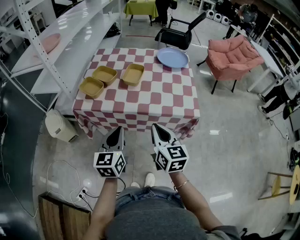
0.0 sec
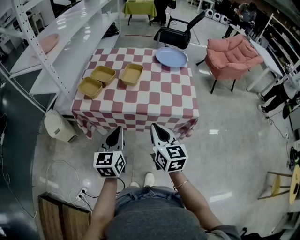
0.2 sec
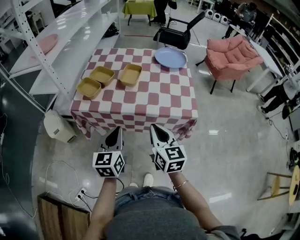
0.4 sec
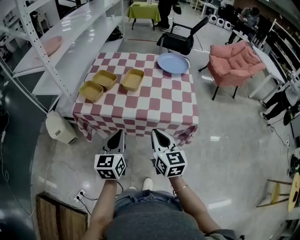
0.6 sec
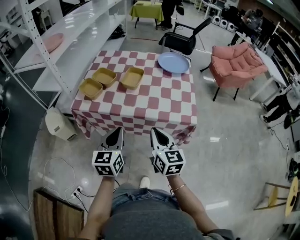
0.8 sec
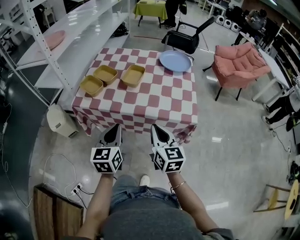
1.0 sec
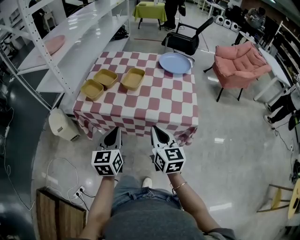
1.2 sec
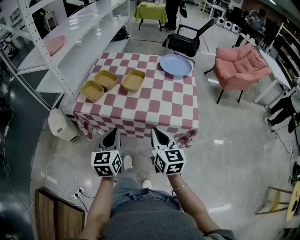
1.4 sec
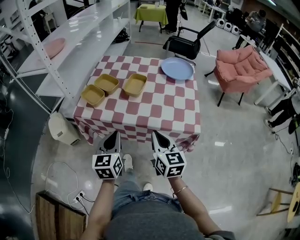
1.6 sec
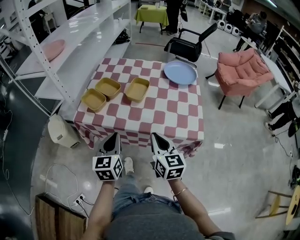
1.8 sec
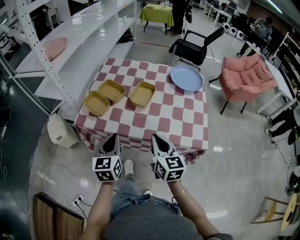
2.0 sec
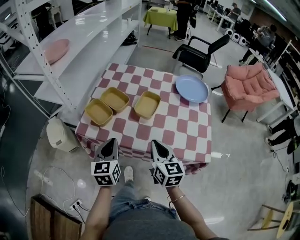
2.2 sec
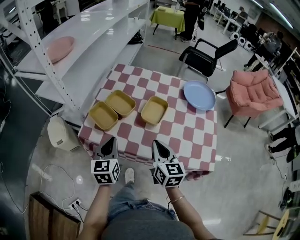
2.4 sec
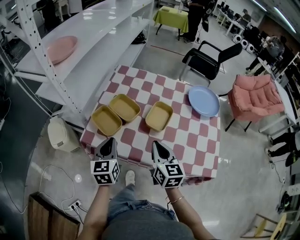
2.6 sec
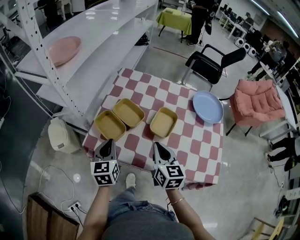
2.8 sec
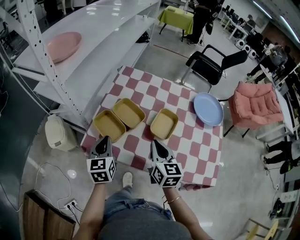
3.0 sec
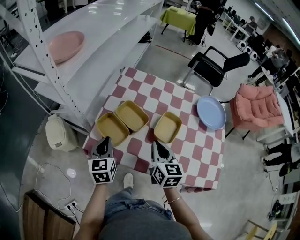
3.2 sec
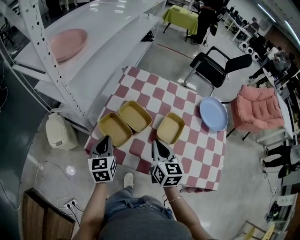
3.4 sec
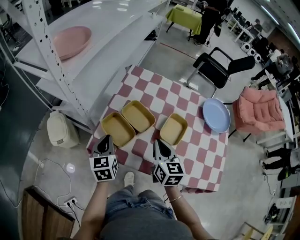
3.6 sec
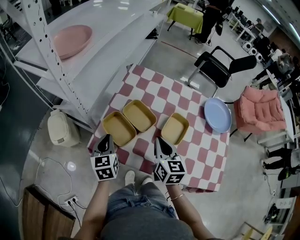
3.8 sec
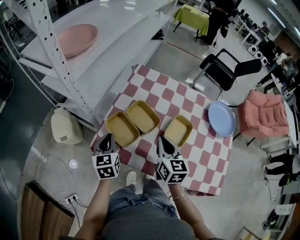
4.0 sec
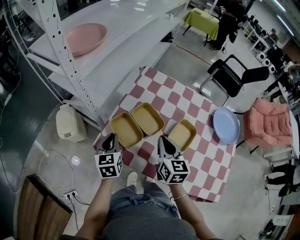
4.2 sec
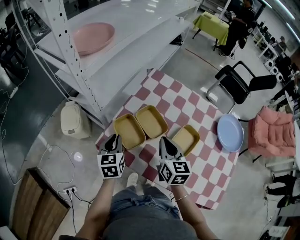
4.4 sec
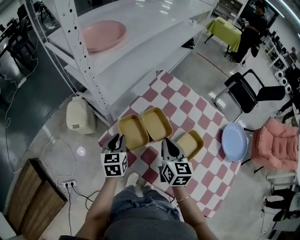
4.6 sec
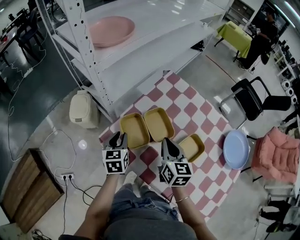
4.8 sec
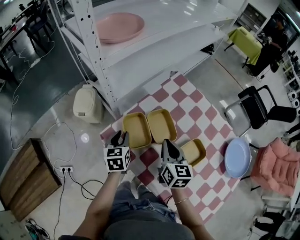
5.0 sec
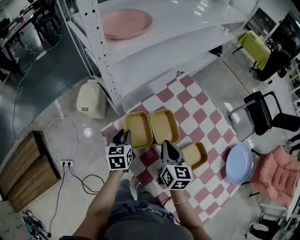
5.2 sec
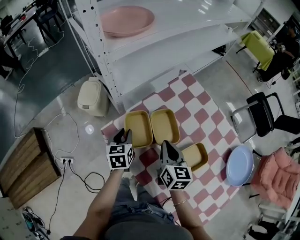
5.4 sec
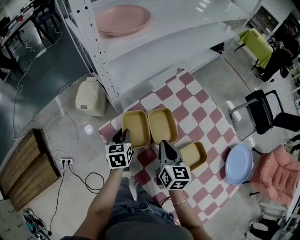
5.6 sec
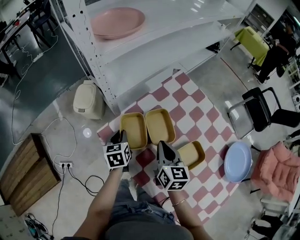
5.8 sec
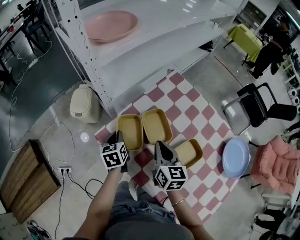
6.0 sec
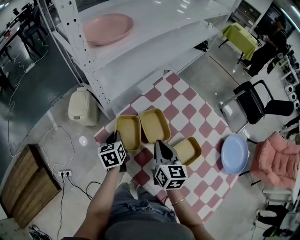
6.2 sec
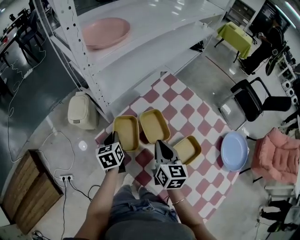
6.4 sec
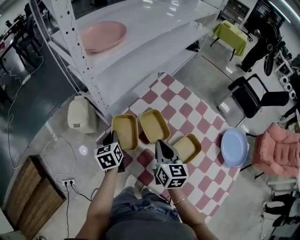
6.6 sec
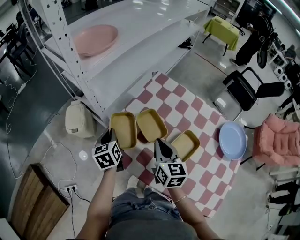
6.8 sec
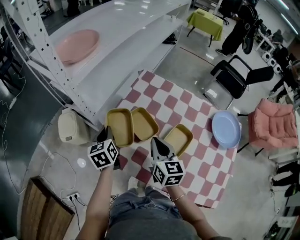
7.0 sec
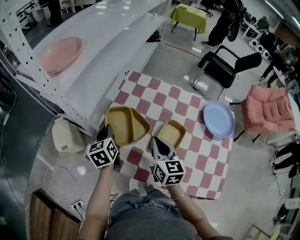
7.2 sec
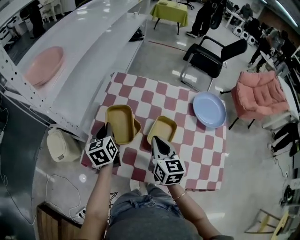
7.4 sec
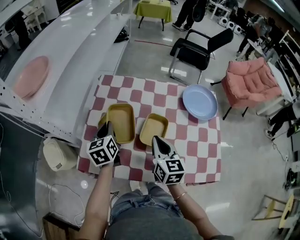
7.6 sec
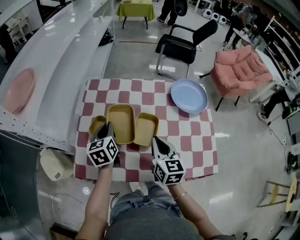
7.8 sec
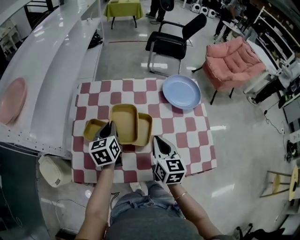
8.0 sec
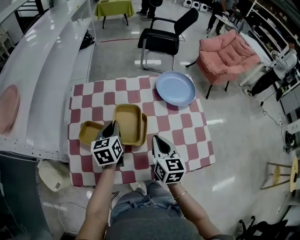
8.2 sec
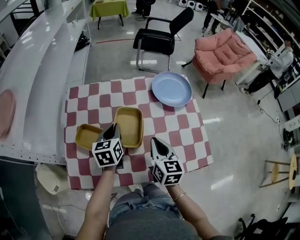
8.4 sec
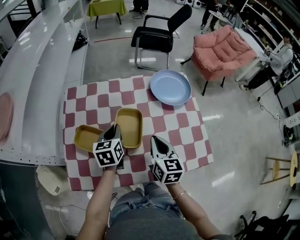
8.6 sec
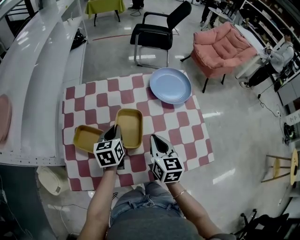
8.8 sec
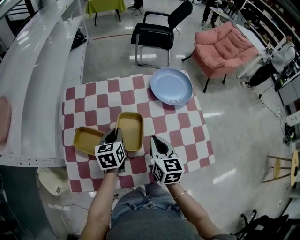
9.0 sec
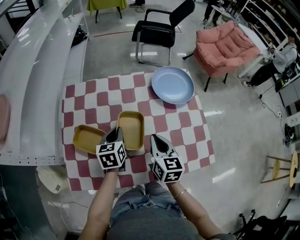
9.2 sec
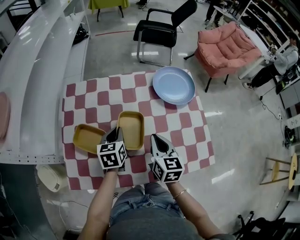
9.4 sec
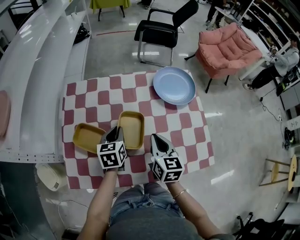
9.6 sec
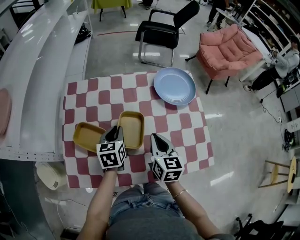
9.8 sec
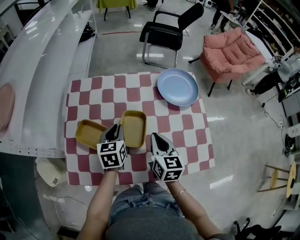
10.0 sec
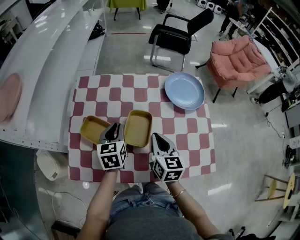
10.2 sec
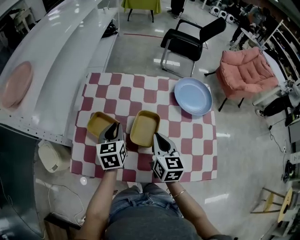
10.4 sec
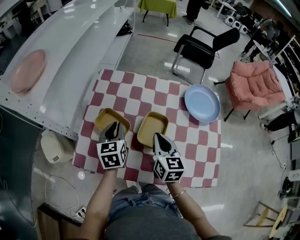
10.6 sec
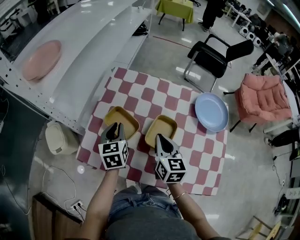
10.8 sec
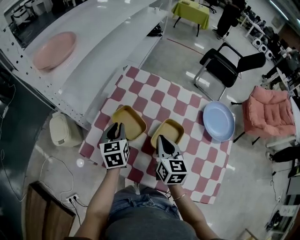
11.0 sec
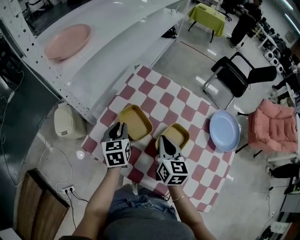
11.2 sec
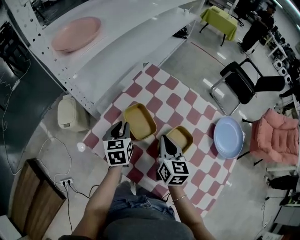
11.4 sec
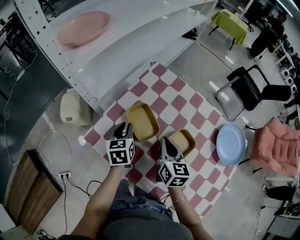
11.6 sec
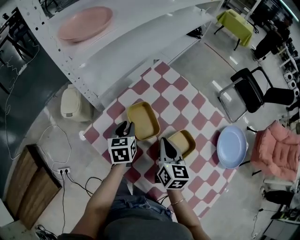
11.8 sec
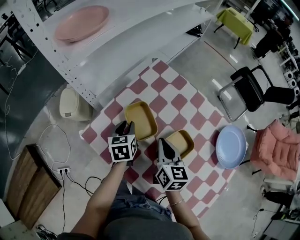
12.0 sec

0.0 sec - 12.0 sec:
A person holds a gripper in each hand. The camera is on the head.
0.0 sec - 1.6 sec: The right gripper changes place by approximately 5 cm.
1.6 sec - 3.0 sec: The grippers both shift forward and to the left by some 30 cm.
3.0 sec - 4.4 sec: The right gripper heads forward, covering approximately 10 cm. Meanwhile the left gripper moves approximately 5 cm.
4.4 sec - 6.0 sec: The left gripper moves downward, about 5 cm, and changes its angle by approximately 30 degrees.
6.0 sec - 7.6 sec: The right gripper ends up roughly 15 cm from where it was, and turns by approximately 40 degrees. Meanwhile the left gripper shifts by about 20 cm, and rotates approximately 40 degrees.
7.6 sec - 9.0 sec: The left gripper goes about 15 cm to the right, and changes its angle by some 30 degrees; the right gripper goes approximately 10 cm to the right.
9.0 sec - 10.4 sec: The left gripper is displaced to the left by some 5 cm, while the right gripper moves roughly 5 cm.
10.4 sec - 12.0 sec: The right gripper moves about 15 cm, and turns by approximately 30 degrees; the left gripper ends up approximately 15 cm from where it was, and turns by about 40 degrees.

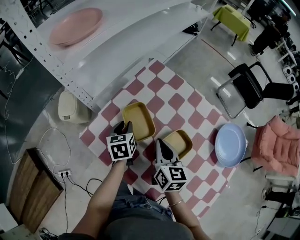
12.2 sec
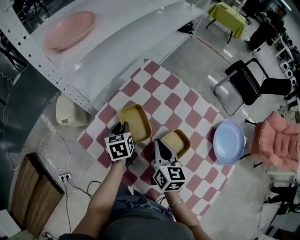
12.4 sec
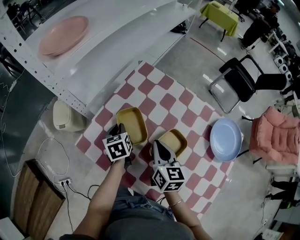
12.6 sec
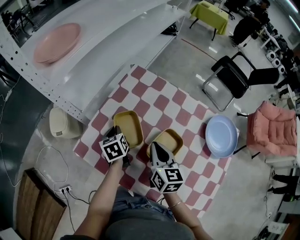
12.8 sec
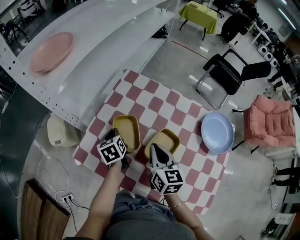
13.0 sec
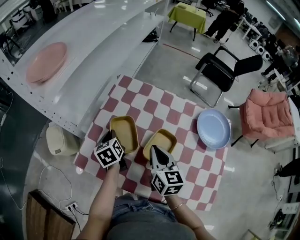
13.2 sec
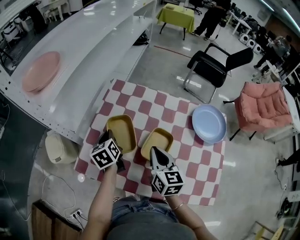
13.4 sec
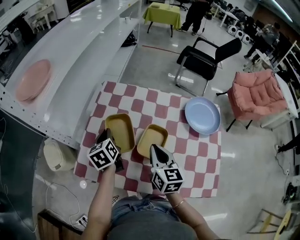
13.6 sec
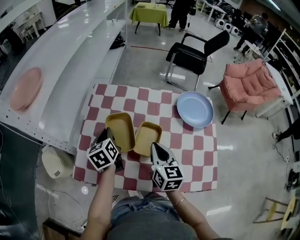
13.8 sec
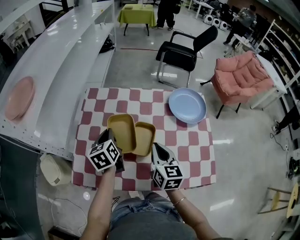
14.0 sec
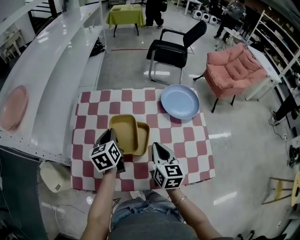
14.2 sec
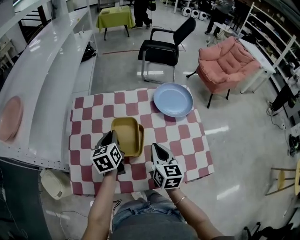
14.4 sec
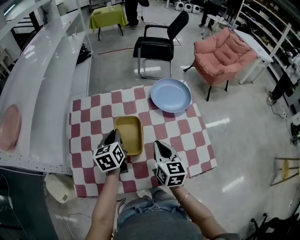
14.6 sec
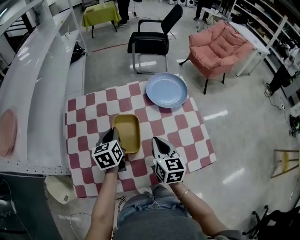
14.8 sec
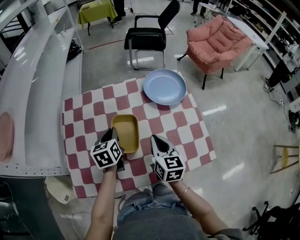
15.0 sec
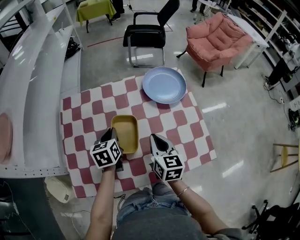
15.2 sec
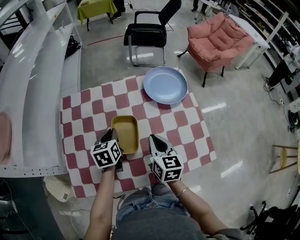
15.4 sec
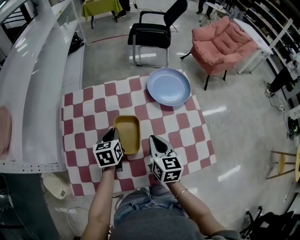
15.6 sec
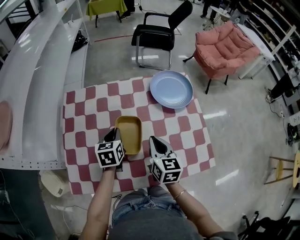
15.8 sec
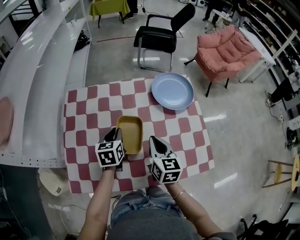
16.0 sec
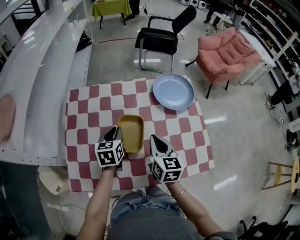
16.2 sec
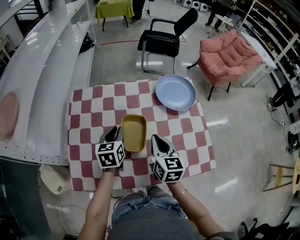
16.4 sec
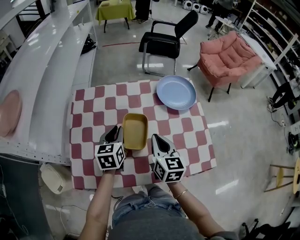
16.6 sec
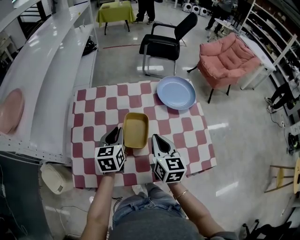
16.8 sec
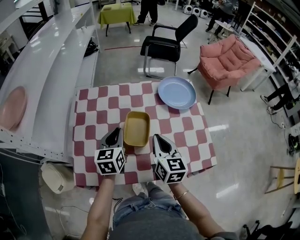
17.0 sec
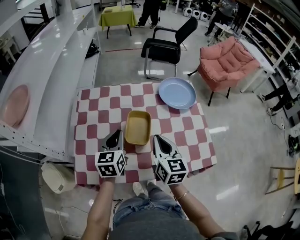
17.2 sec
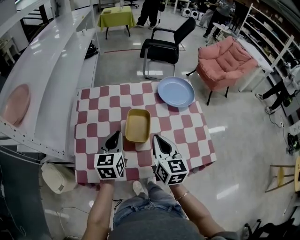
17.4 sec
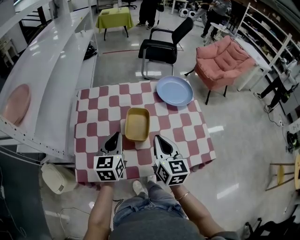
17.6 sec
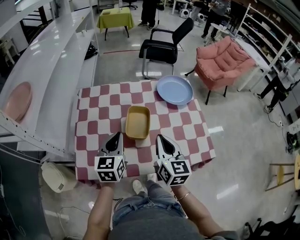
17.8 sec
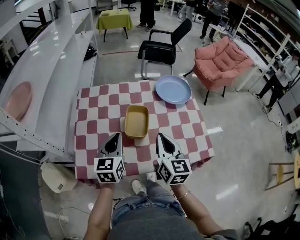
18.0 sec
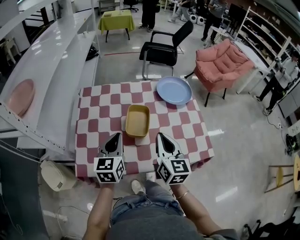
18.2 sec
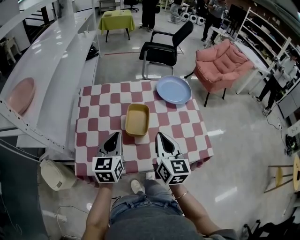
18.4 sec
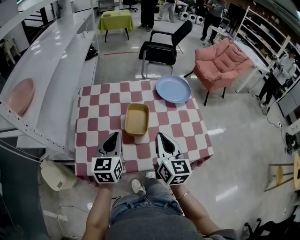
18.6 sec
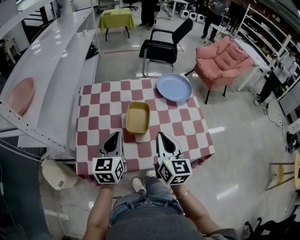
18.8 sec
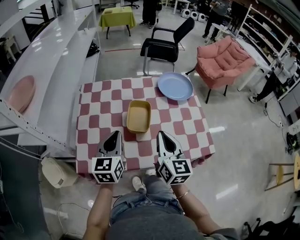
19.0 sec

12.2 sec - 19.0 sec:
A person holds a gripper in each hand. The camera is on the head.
12.2 sec - 13.6 sec: The left gripper shifts approximately 10 cm upward; the right gripper is displaced backward and to the right by some 10 cm, and swivels approximately 20 degrees.
13.6 sec - 15.0 sec: The right gripper ends up some 15 cm from where it was, and rotates approximately 20 degrees; the left gripper moves approximately 20 cm, and rotates about 40 degrees.
15.0 sec - 16.2 sec: There are only small adjustments of the grippers.
16.2 sec - 17.6 sec: Both grippers travel together backward and upward, about 10 cm.
17.6 sec - 19.0 sec: The left gripper shifts by about 5 cm.

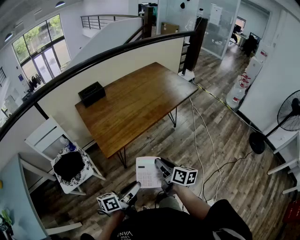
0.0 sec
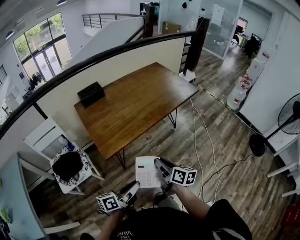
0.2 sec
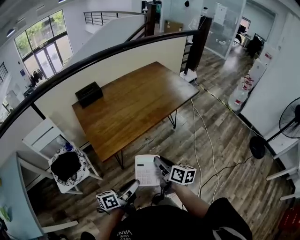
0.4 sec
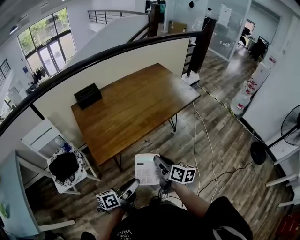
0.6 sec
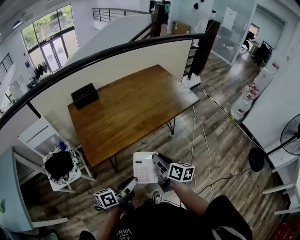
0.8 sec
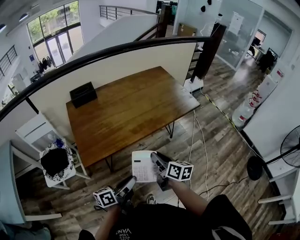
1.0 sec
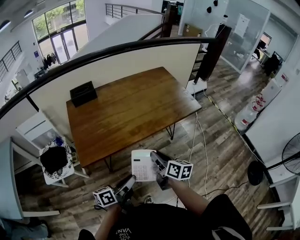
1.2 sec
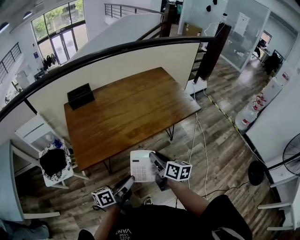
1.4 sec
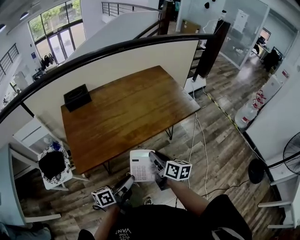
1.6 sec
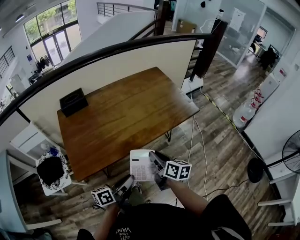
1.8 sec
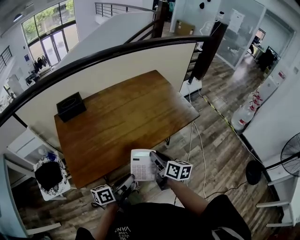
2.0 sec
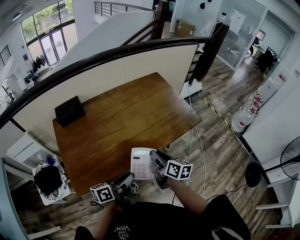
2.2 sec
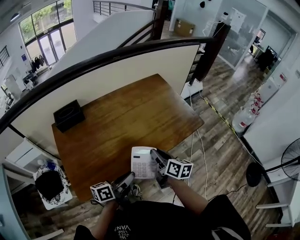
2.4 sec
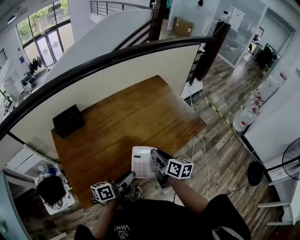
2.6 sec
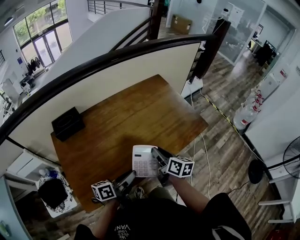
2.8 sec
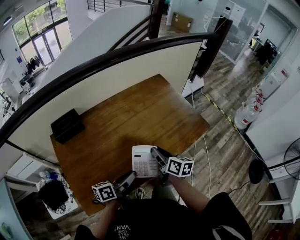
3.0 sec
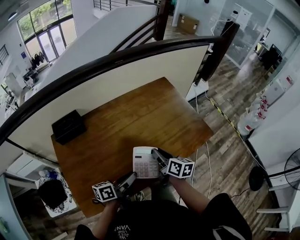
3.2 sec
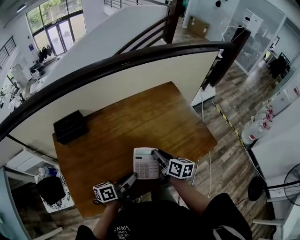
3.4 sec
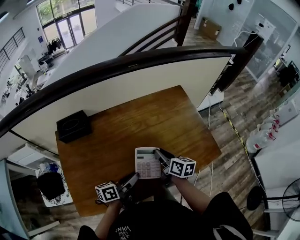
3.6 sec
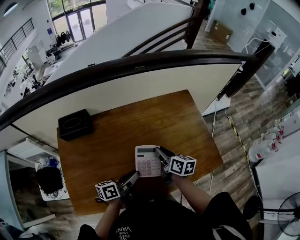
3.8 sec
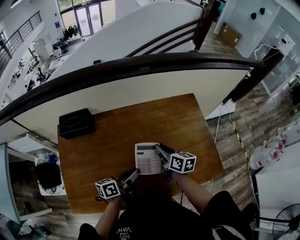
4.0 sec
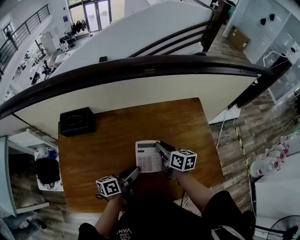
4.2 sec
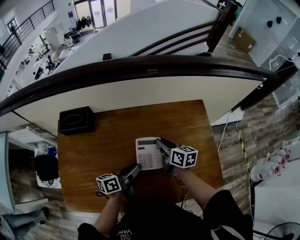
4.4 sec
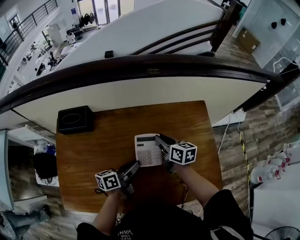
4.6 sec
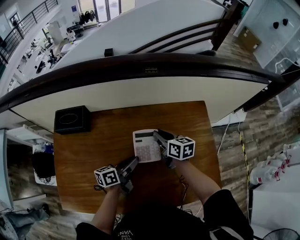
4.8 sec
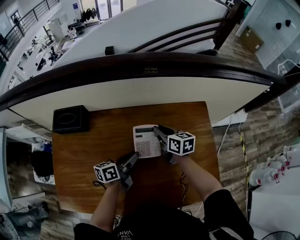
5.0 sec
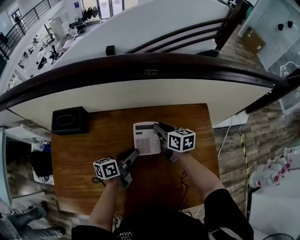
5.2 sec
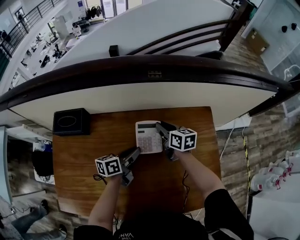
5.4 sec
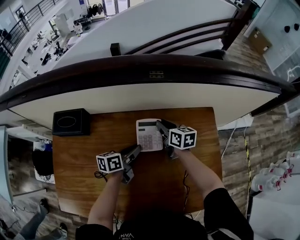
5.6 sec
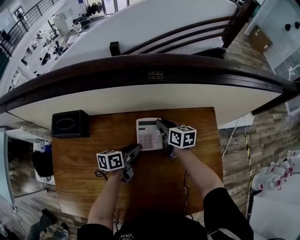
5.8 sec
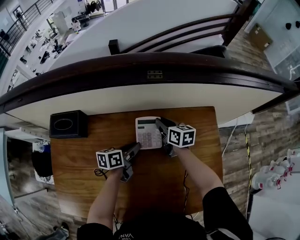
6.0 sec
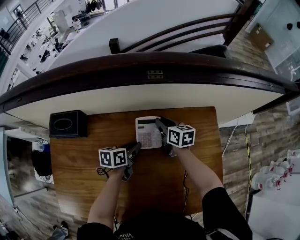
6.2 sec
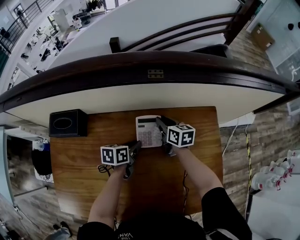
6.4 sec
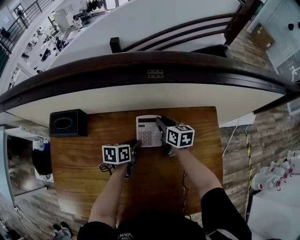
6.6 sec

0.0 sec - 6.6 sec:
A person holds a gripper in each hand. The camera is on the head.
0.0 sec - 1.6 sec: Both grippers travel together forward and to the right, roughly 30 cm.
1.6 sec - 3.2 sec: The grippers both shift forward by about 30 cm.
3.2 sec - 5.0 sec: The right gripper changes place by some 35 cm, and changes its angle by some 40 degrees, while the left gripper shifts by some 30 cm, and swivels approximately 30 degrees.
5.0 sec - 6.6 sec: The two grippers go about 10 cm forward and downward. The left gripper rotates some 30 degrees.
